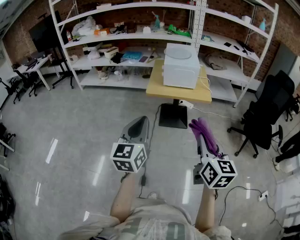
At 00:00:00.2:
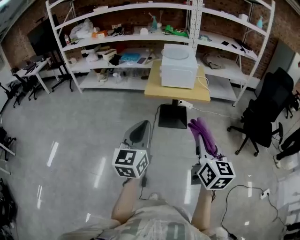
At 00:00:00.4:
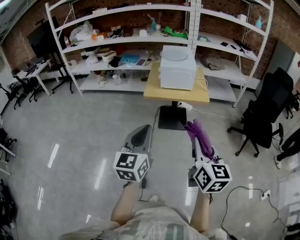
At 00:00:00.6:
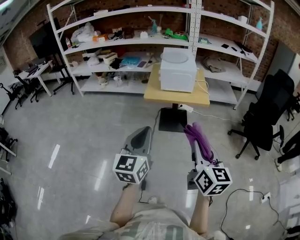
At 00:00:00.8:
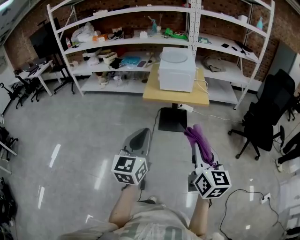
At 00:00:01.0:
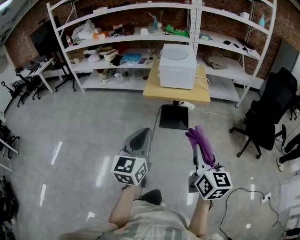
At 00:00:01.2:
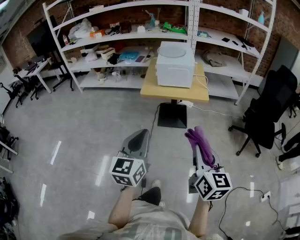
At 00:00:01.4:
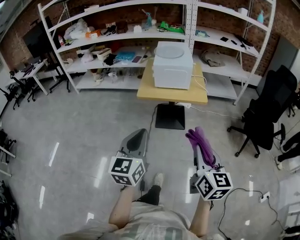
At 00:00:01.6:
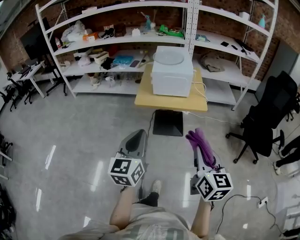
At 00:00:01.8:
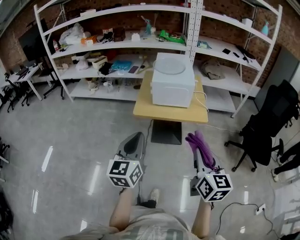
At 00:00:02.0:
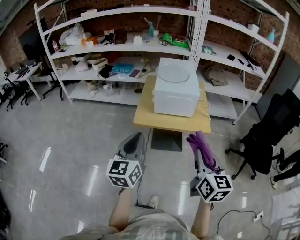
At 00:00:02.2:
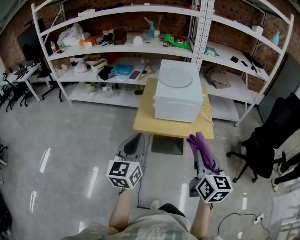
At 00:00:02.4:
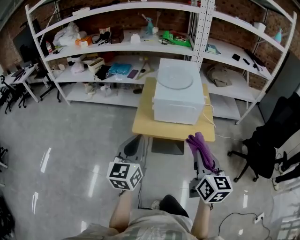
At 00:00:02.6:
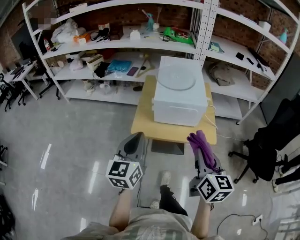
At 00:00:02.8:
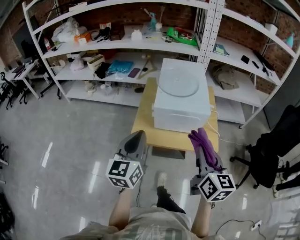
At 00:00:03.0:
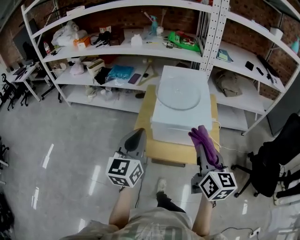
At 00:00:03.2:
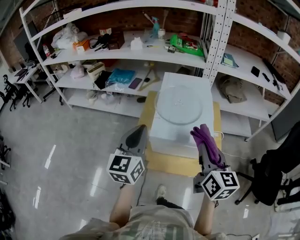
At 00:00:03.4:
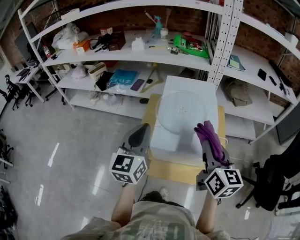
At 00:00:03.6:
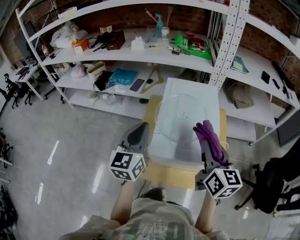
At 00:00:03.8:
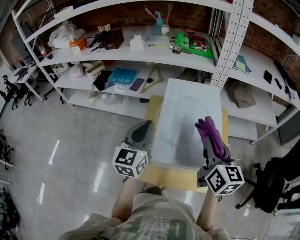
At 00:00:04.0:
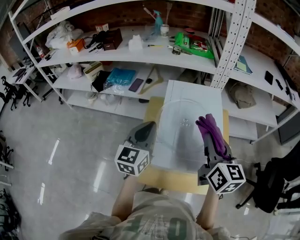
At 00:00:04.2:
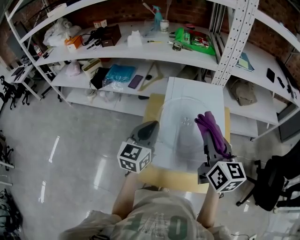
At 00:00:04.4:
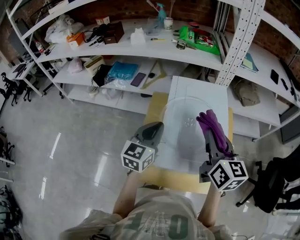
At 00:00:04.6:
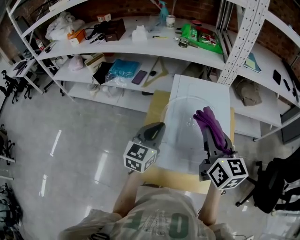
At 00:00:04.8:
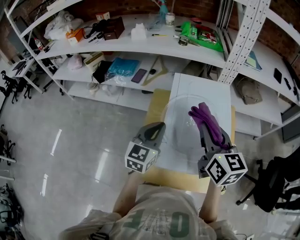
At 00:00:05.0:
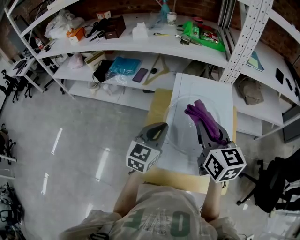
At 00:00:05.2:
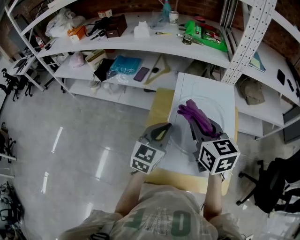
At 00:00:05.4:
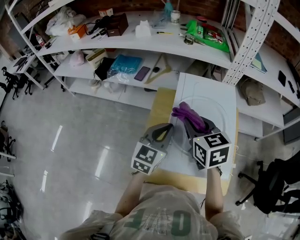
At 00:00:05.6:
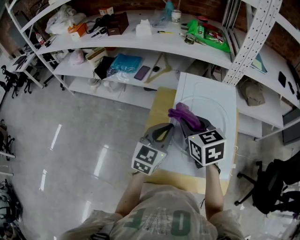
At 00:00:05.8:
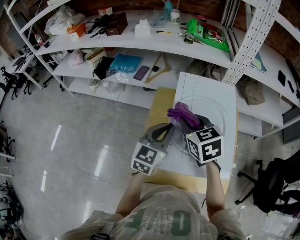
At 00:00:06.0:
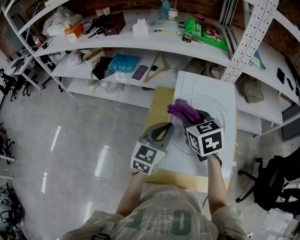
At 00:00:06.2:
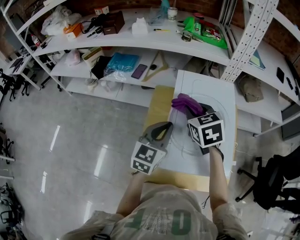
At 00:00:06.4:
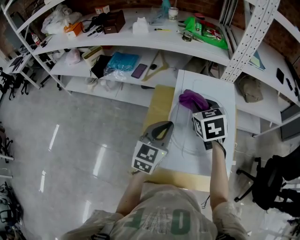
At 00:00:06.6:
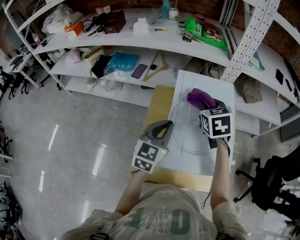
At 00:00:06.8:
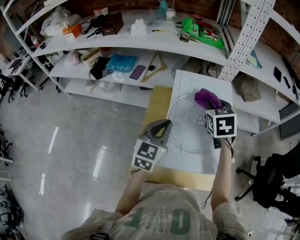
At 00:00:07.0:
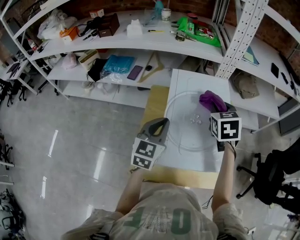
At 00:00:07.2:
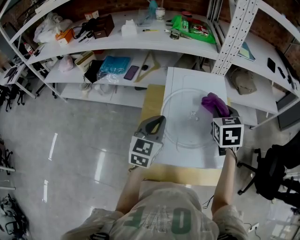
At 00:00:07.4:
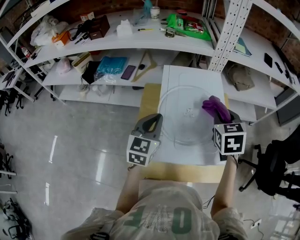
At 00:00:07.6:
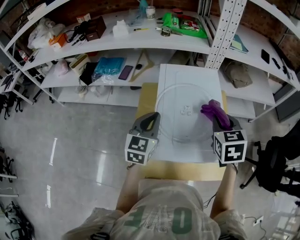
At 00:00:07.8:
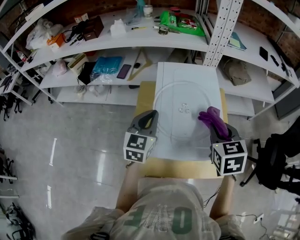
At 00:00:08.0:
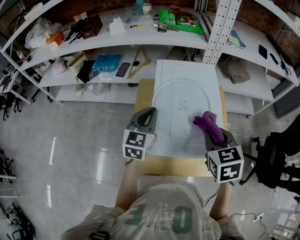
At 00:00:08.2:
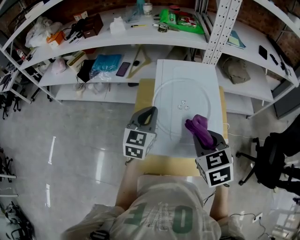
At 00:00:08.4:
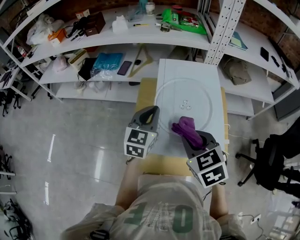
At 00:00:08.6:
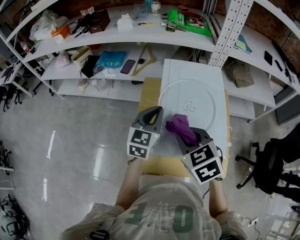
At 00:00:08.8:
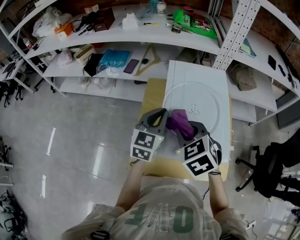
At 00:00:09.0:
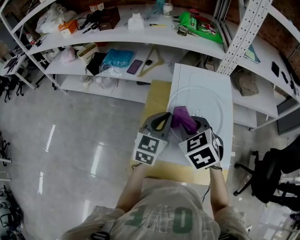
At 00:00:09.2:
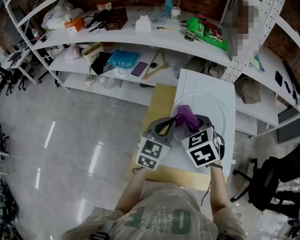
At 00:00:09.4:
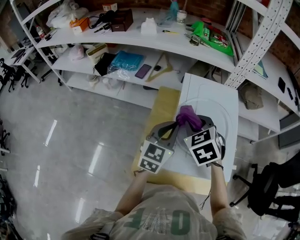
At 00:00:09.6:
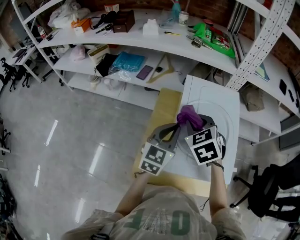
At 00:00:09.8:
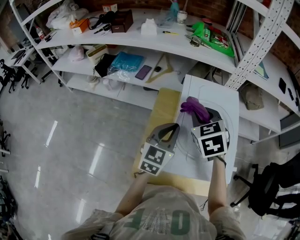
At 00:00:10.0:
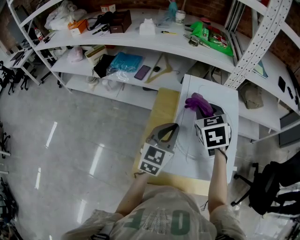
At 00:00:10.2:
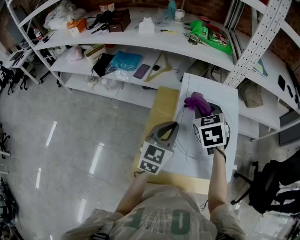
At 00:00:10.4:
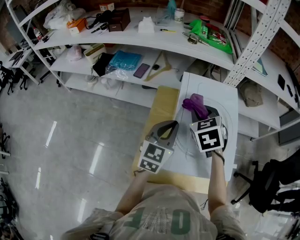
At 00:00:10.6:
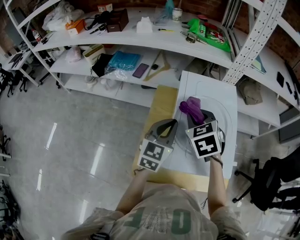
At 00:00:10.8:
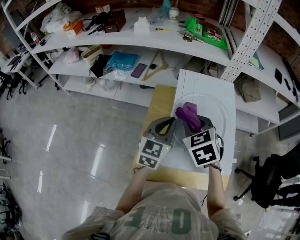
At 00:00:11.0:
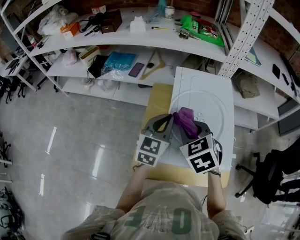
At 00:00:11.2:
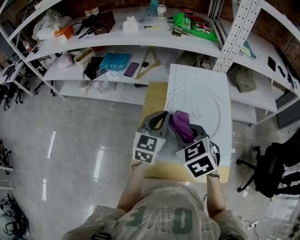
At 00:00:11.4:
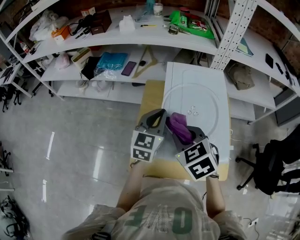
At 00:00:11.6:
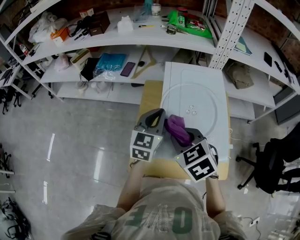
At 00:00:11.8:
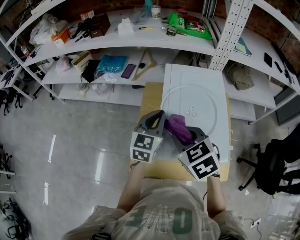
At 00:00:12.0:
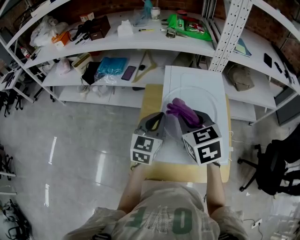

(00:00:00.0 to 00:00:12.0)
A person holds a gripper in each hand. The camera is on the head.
00:00:00.0 - 00:00:01.6: Both grippers travel together forward and to the right, about 10 cm.
00:00:01.6 - 00:00:03.0: Both grippers are carried forward, approximately 40 cm.
00:00:03.0 - 00:00:04.4: The two grippers go some 25 cm forward.
00:00:04.4 - 00:00:06.0: The right gripper heads to the left, forward and downward, covering approximately 15 cm, and swivels roughly 40 degrees.
00:00:06.0 - 00:00:07.6: The right gripper goes about 20 cm to the right, and swivels approximately 30 degrees.
00:00:07.6 - 00:00:09.0: The right gripper goes approximately 15 cm to the left, and swivels roughly 30 degrees.
00:00:09.0 - 00:00:10.4: The right gripper goes about 10 cm forward.
00:00:10.4 - 00:00:12.0: The right gripper heads backward, covering roughly 10 cm.

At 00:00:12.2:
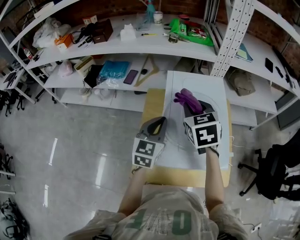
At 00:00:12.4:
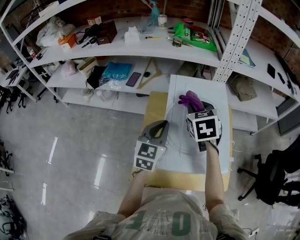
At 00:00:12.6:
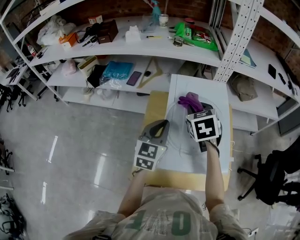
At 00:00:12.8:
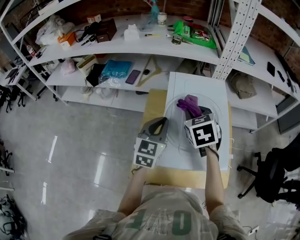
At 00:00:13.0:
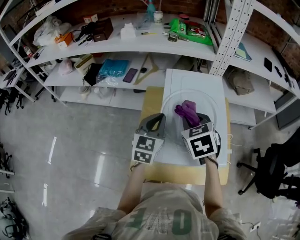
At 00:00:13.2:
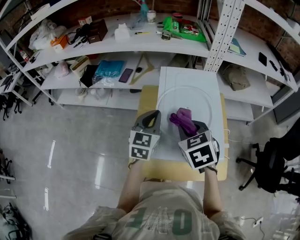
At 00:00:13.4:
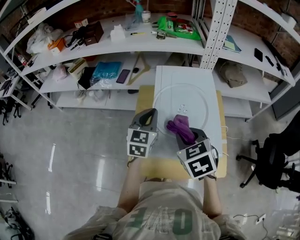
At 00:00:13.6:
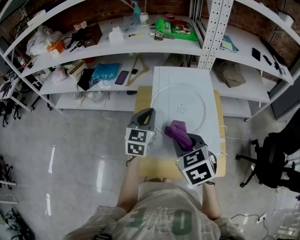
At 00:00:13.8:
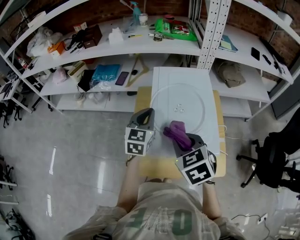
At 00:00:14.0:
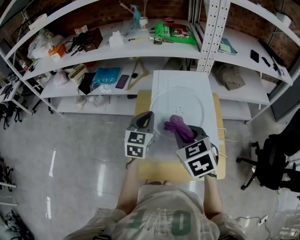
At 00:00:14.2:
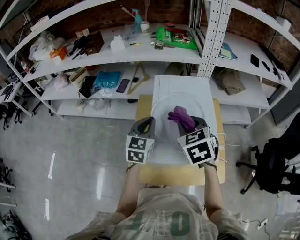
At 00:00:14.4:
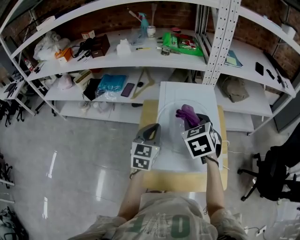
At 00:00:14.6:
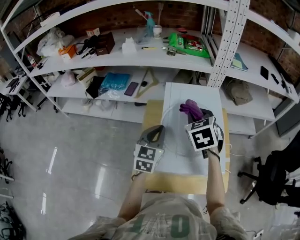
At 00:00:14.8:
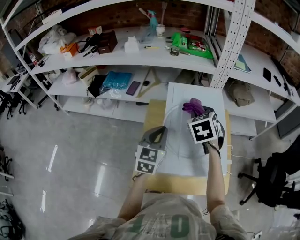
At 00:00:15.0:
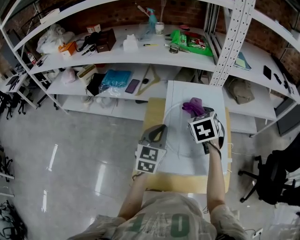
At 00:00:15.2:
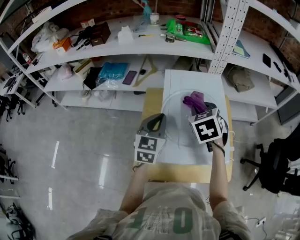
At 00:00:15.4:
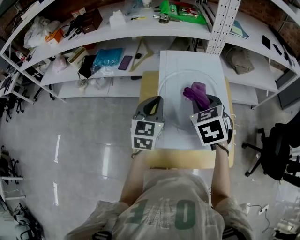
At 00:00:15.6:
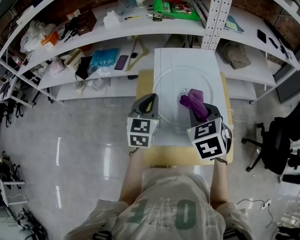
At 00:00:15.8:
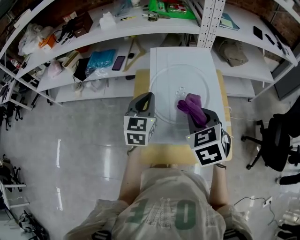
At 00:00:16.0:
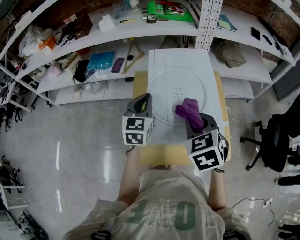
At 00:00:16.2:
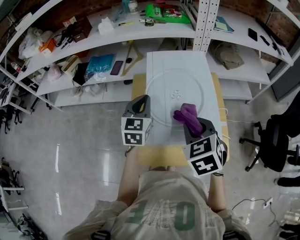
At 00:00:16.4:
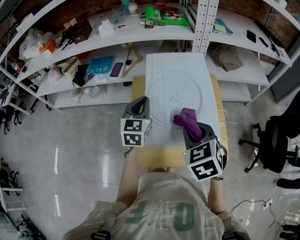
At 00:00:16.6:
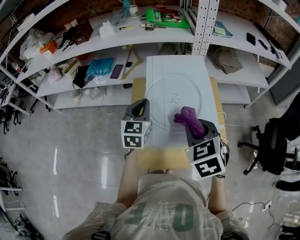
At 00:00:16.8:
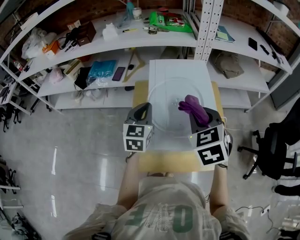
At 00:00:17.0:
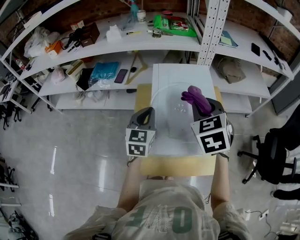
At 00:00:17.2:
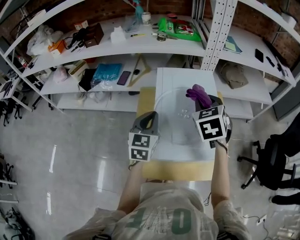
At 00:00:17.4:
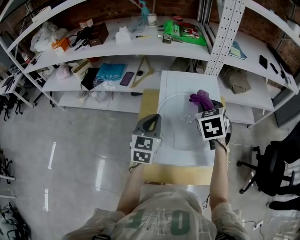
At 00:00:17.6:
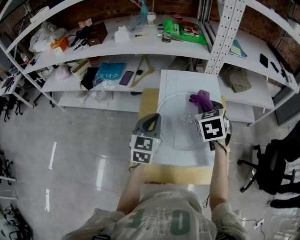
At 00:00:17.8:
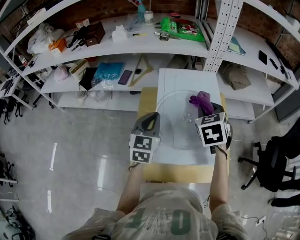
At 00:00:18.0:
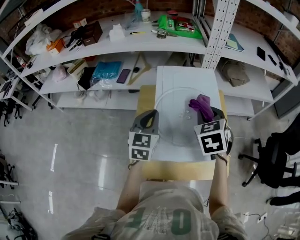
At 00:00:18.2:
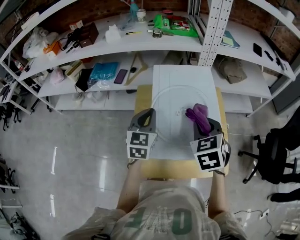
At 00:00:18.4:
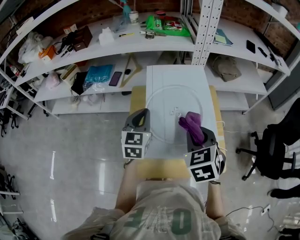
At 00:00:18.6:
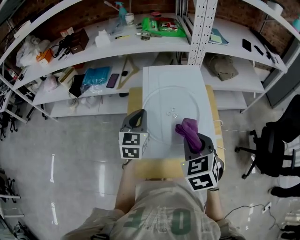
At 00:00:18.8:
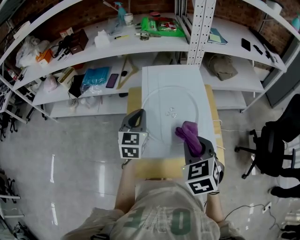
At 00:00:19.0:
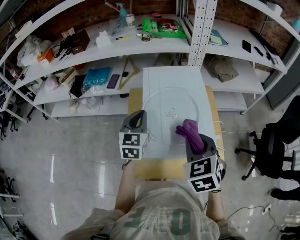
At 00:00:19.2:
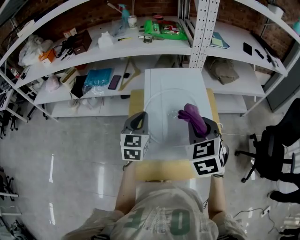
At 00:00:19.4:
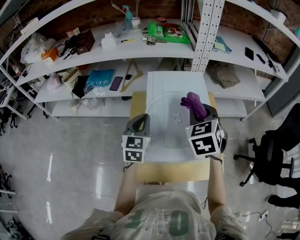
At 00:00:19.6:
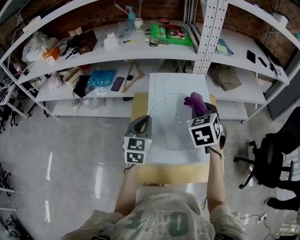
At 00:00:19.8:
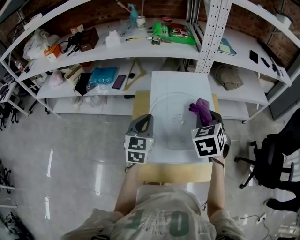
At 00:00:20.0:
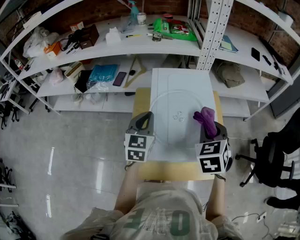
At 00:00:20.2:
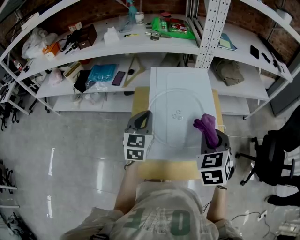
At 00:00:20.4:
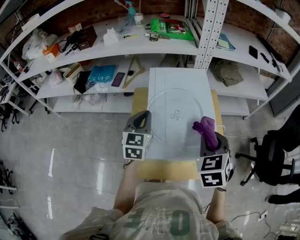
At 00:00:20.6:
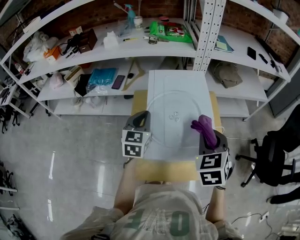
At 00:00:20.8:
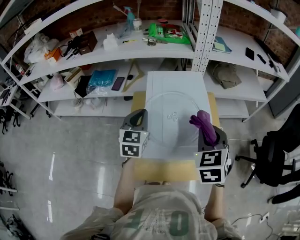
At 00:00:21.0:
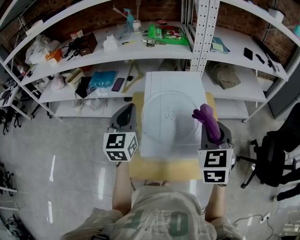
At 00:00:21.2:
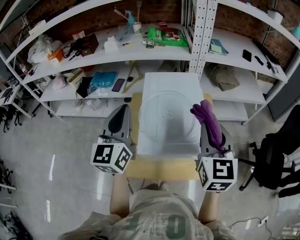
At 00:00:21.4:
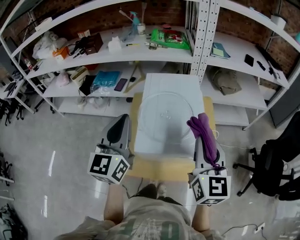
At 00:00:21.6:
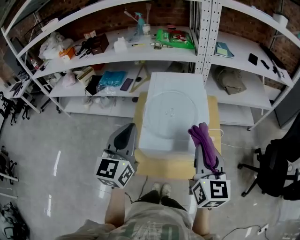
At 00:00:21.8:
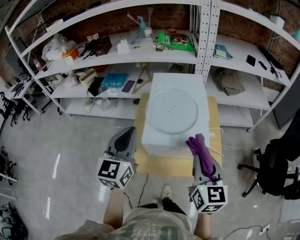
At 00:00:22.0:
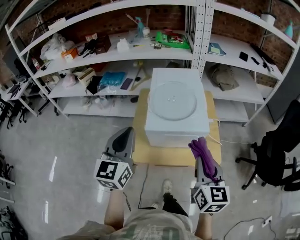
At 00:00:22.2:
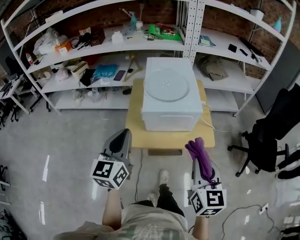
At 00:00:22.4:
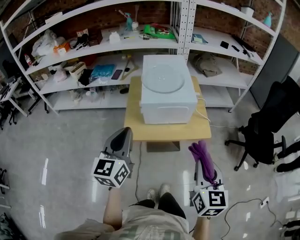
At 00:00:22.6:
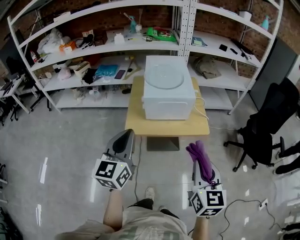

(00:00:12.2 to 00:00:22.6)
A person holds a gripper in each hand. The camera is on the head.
00:00:12.2 - 00:00:13.6: The right gripper is displaced backward by about 15 cm.
00:00:13.6 - 00:00:15.2: The right gripper heads forward, covering some 15 cm.
00:00:15.2 - 00:00:16.6: The right gripper shifts some 15 cm backward.
00:00:16.6 - 00:00:18.2: The right gripper is displaced forward by some 5 cm.
00:00:18.2 - 00:00:19.6: The right gripper goes roughly 10 cm forward.
00:00:19.6 - 00:00:21.2: The left gripper travels upward and backward by some 20 cm, and swivels some 20 degrees. Meanwhile the right gripper goes roughly 15 cm backward, upward and to the right, and changes its angle by about 30 degrees.
00:00:21.2 - 00:00:22.6: Both grippers travel together backward, some 40 cm.

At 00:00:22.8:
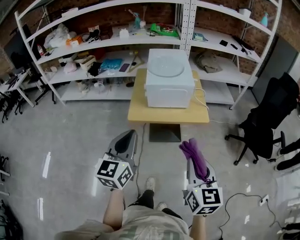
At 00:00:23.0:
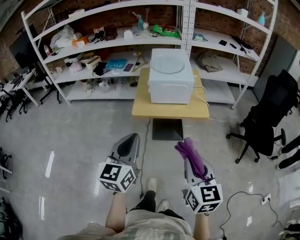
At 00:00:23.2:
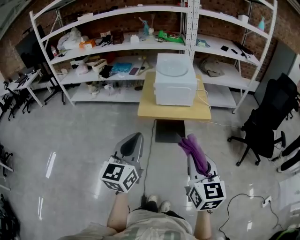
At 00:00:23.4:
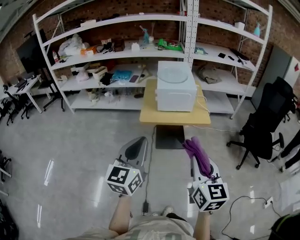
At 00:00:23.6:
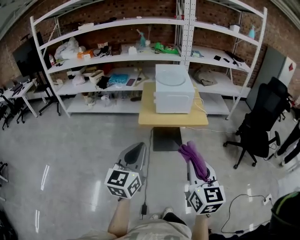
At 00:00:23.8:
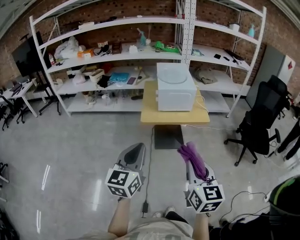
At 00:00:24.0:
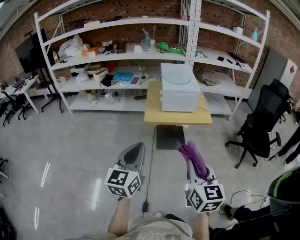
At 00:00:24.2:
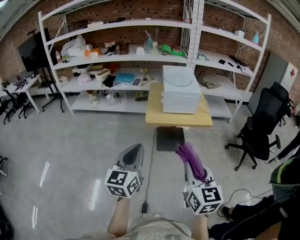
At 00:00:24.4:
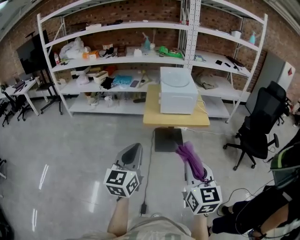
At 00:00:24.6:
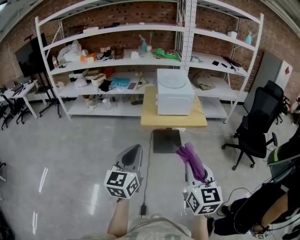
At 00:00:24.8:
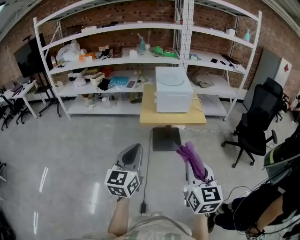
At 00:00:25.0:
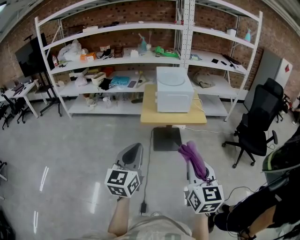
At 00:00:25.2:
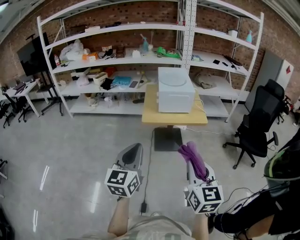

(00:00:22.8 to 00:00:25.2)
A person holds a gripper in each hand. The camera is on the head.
00:00:22.8 - 00:00:24.0: The right gripper goes approximately 15 cm backward and to the left, while the left gripper moves backward, roughly 15 cm.
00:00:24.0 - 00:00:25.2: The right gripper changes place by approximately 5 cm.
